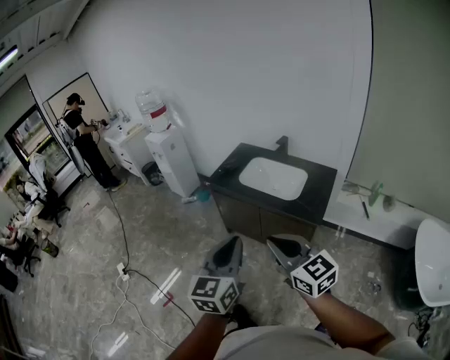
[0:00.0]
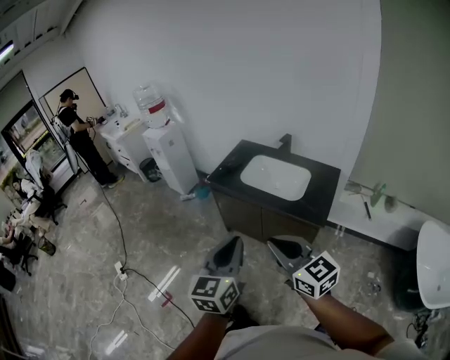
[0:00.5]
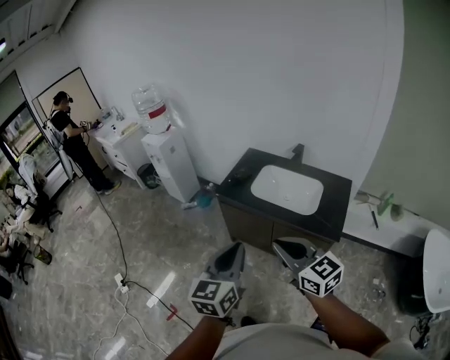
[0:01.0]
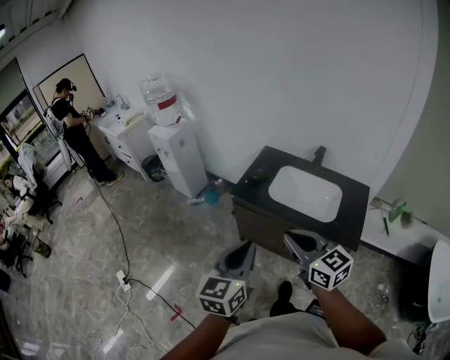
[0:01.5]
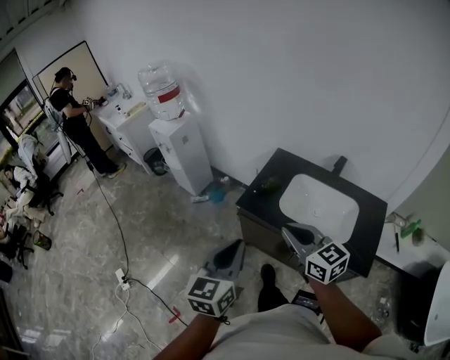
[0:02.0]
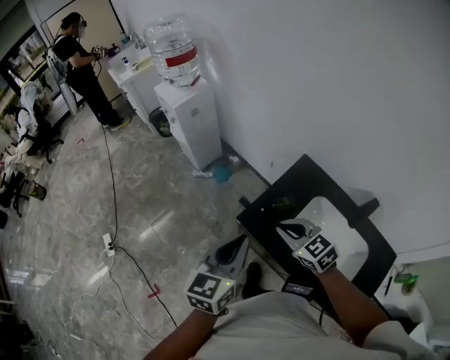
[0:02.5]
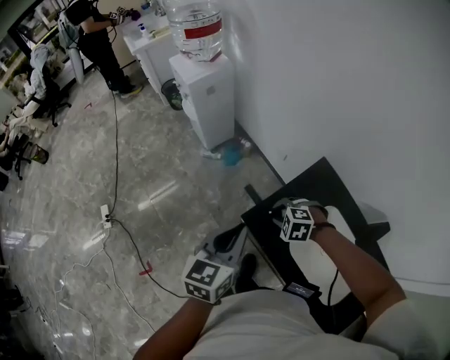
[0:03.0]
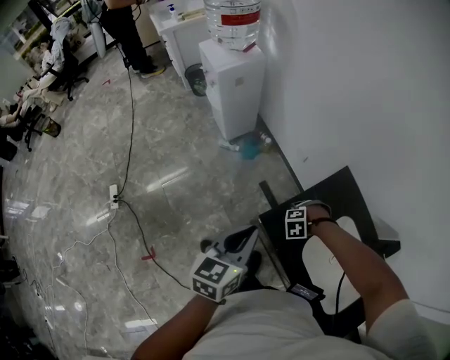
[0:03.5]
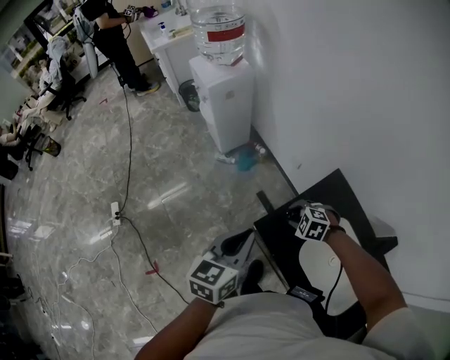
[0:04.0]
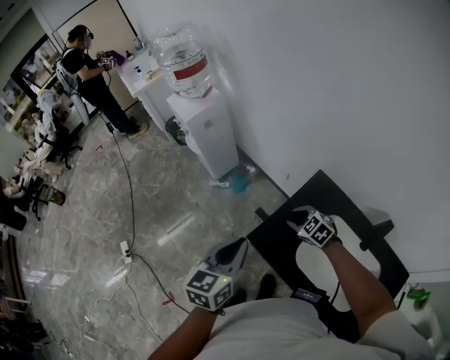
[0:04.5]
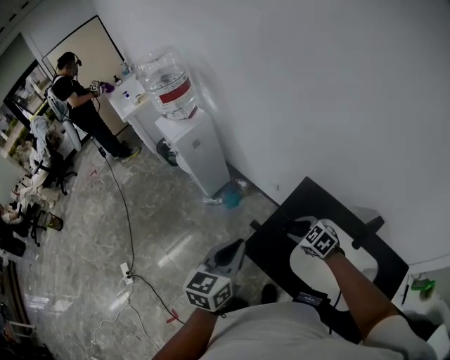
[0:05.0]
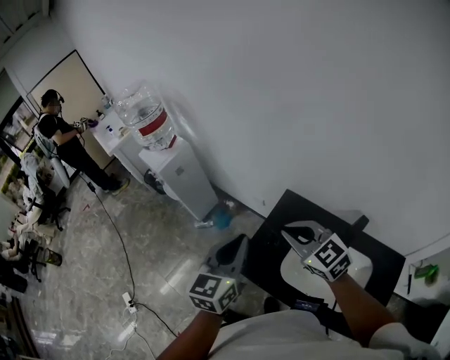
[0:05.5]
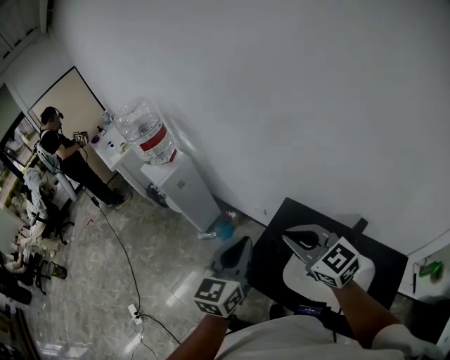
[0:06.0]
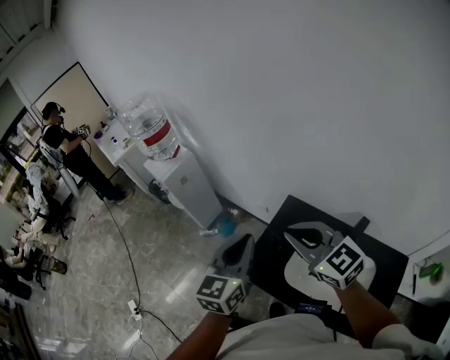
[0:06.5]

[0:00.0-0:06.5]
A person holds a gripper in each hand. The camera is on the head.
0:00.0 to 0:02.0: The two grippers travel together, forward, roughly 50 cm.
0:02.0 to 0:04.5: The left gripper moves some 35 cm, while the right gripper changes place by some 50 cm, tips its fingers downward by approximately 40 degrees, and opens its fingers.
0:04.5 to 0:06.5: The left gripper moves upward and to the right, roughly 20 cm. The right gripper travels upward by approximately 35 cm, angles its fingers upward, by roughly 40 degrees, and closes up.

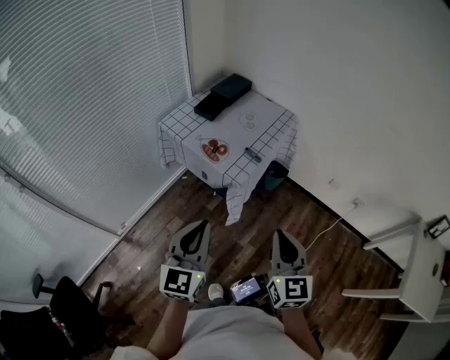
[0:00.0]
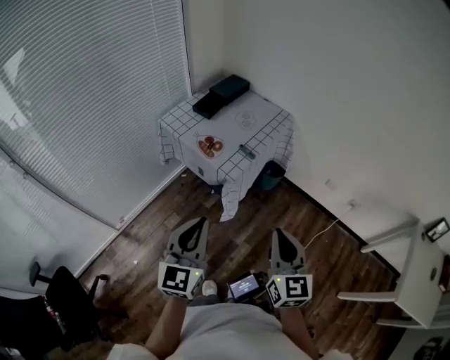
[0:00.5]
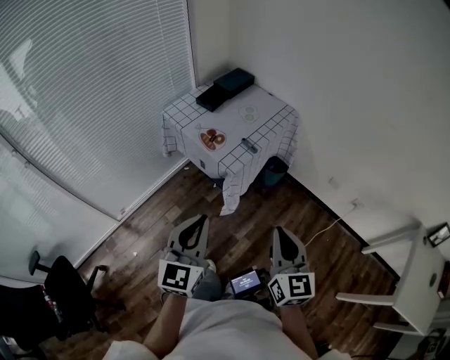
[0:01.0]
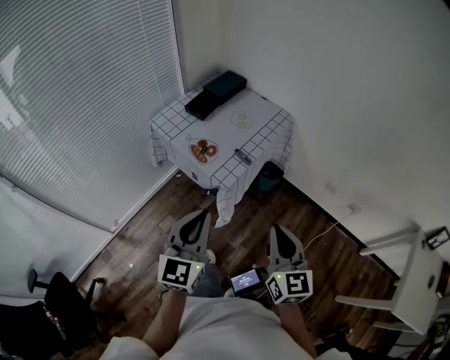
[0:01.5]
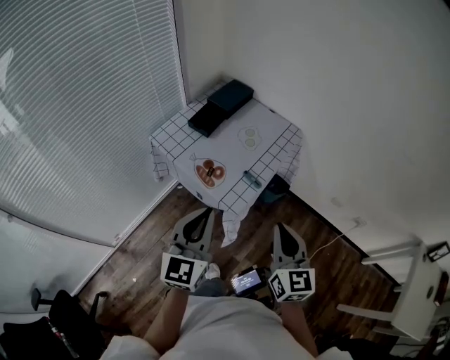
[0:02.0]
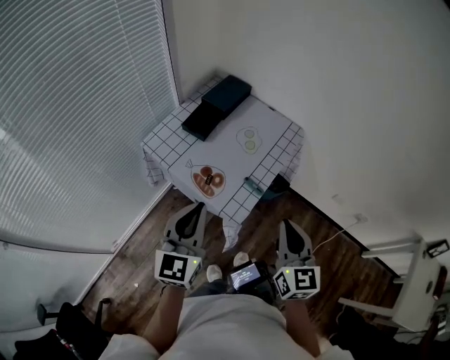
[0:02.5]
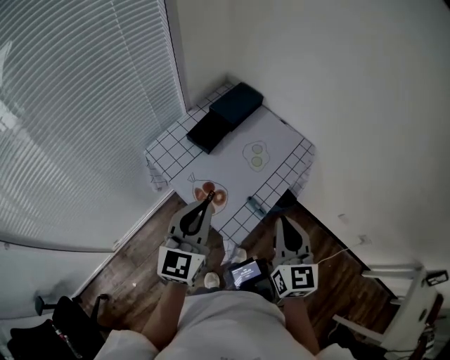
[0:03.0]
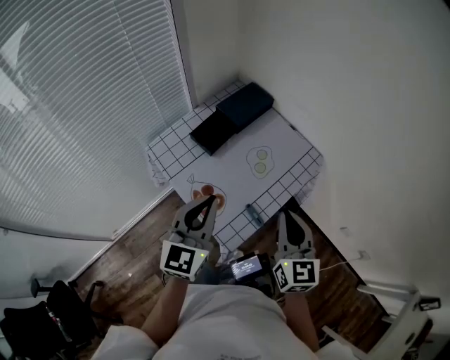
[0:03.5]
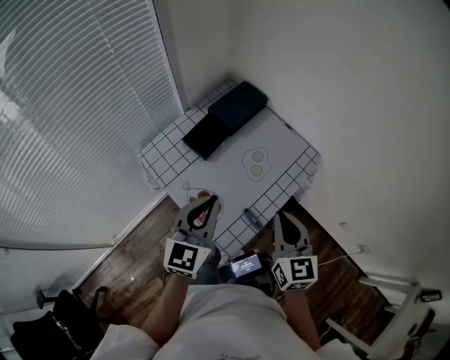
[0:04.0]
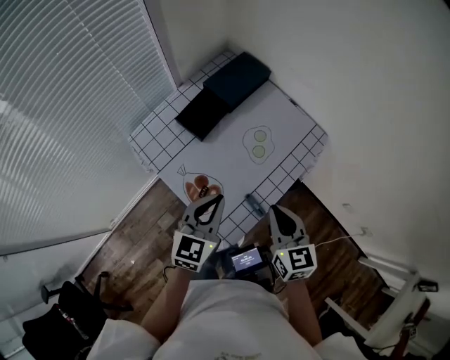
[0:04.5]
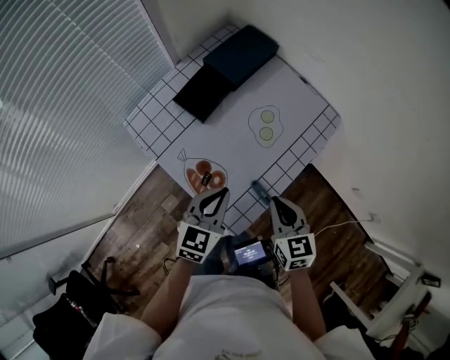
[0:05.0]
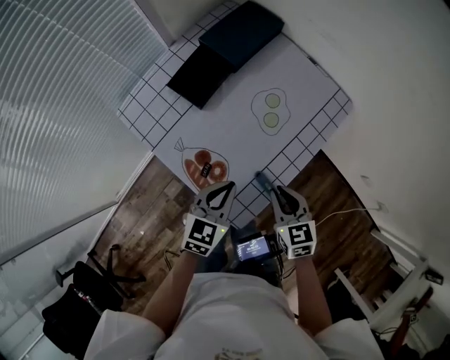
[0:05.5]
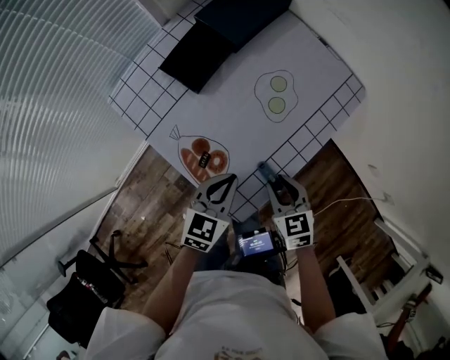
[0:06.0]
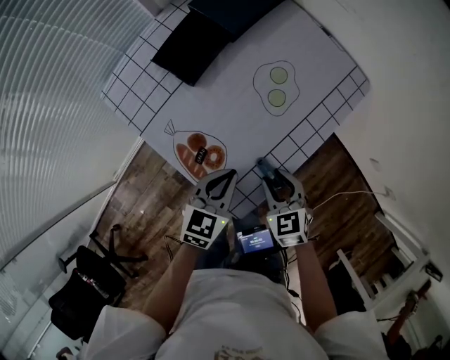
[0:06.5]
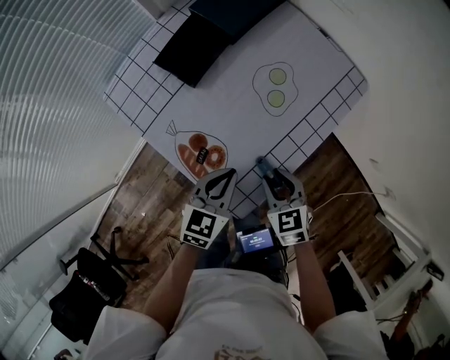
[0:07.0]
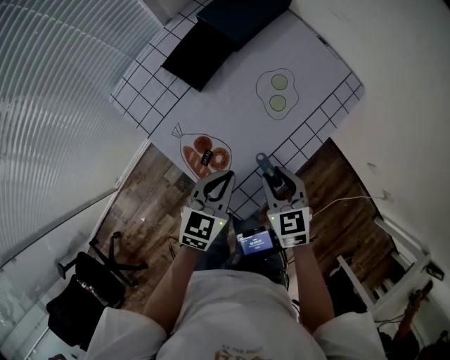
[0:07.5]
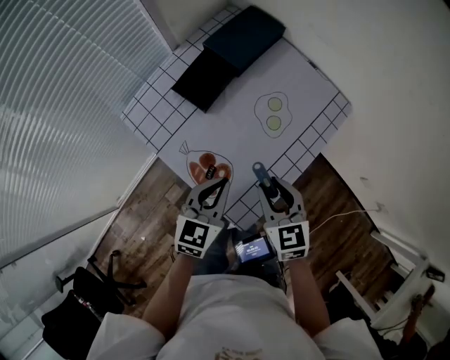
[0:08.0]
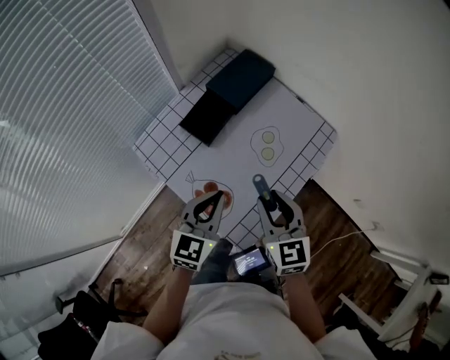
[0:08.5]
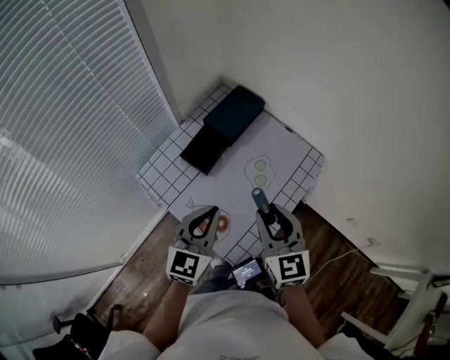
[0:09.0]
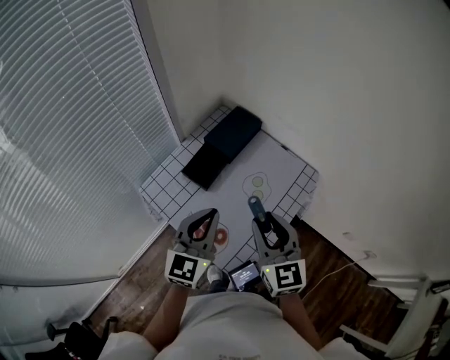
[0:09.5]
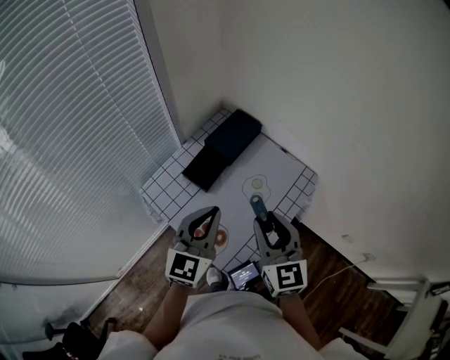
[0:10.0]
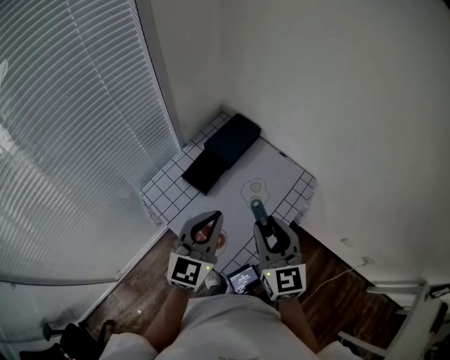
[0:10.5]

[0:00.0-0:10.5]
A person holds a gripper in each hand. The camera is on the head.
0:00.0 to 0:02.0: Both grippers travel together forward, roughly 20 cm.
0:02.0 to 0:04.0: The grippers both shift forward by roughly 25 cm.
0:04.0 to 0:06.5: Both grippers travel together downward, roughly 25 cm. The left gripper changes its angle by about 30 degrees, while the right gripper tips its fingers downward by about 30 degrees, and opens up.
0:06.5 to 0:08.5: Both grippers move upward, some 20 cm. The right gripper turns by some 30 degrees.
0:08.5 to 0:10.5: The grippers both shift upward by some 15 cm.

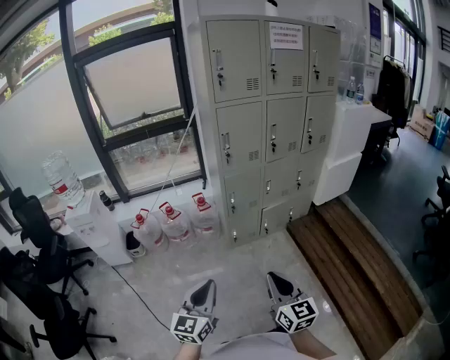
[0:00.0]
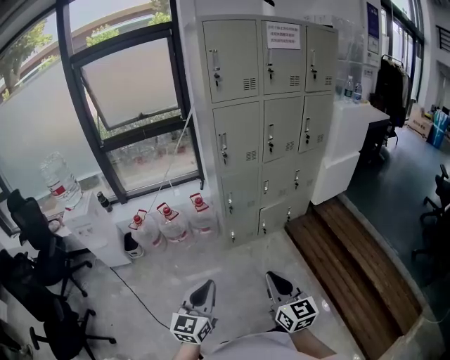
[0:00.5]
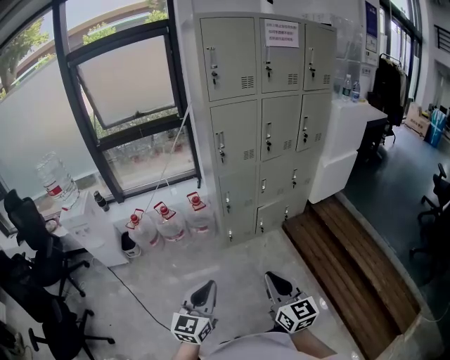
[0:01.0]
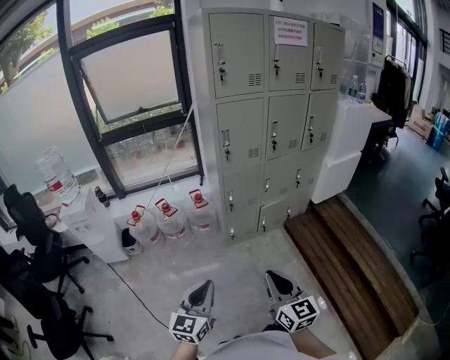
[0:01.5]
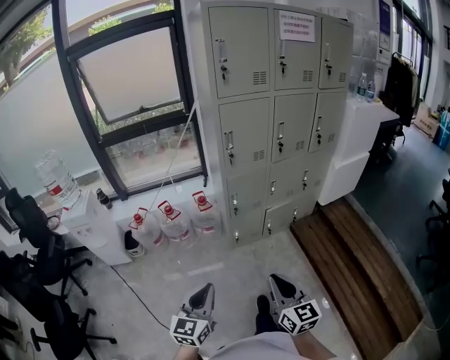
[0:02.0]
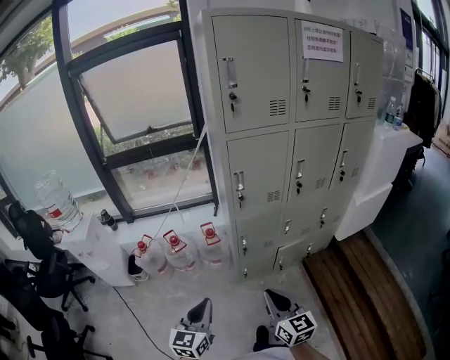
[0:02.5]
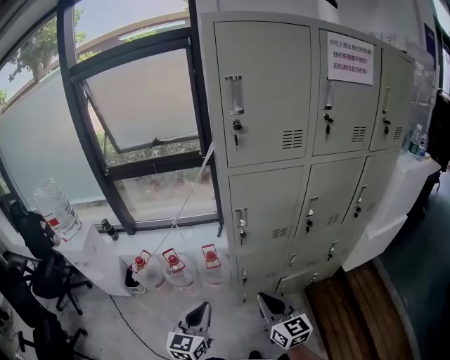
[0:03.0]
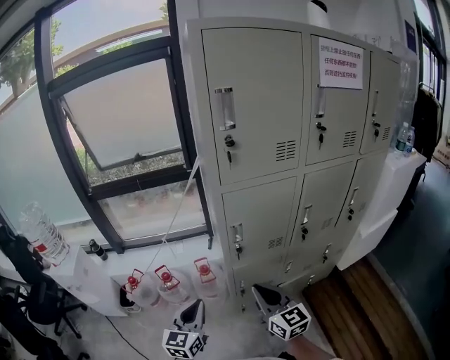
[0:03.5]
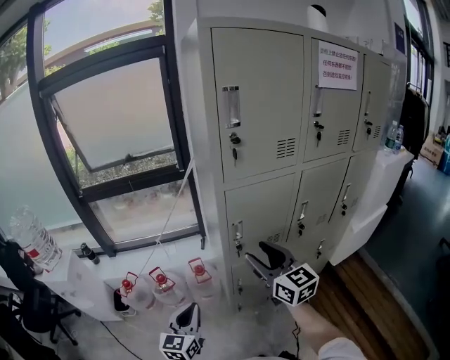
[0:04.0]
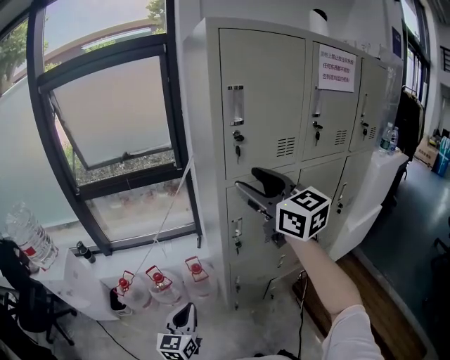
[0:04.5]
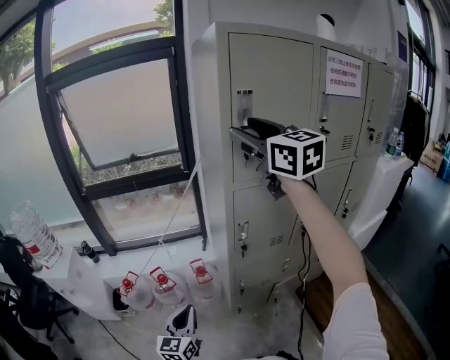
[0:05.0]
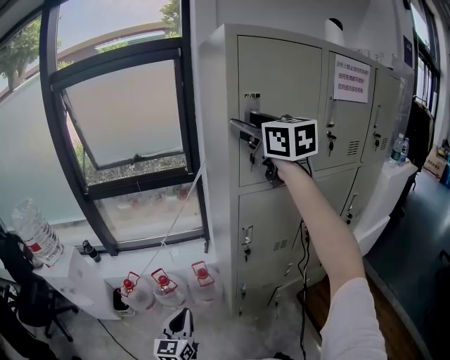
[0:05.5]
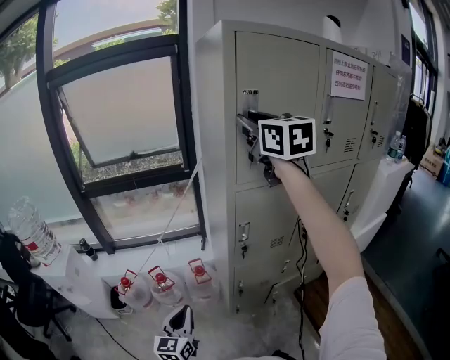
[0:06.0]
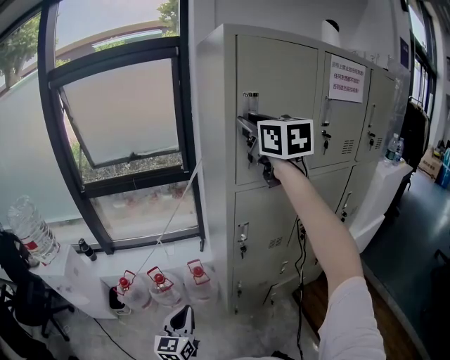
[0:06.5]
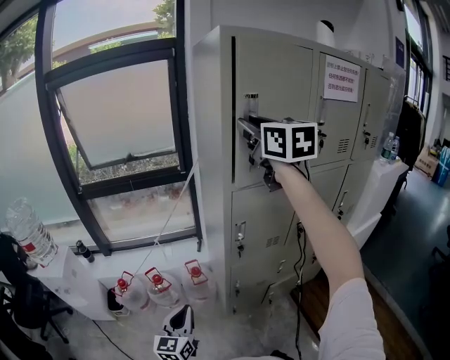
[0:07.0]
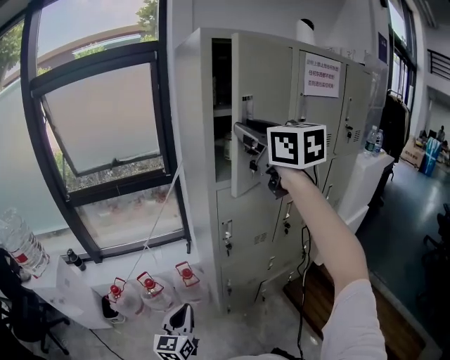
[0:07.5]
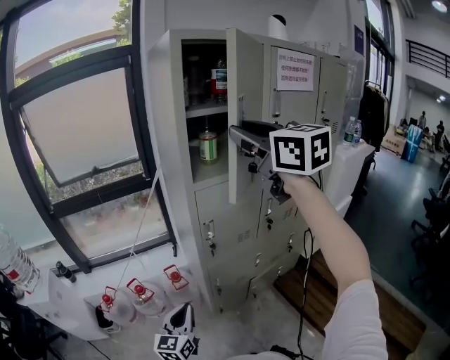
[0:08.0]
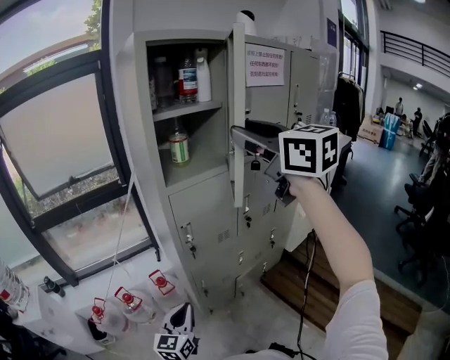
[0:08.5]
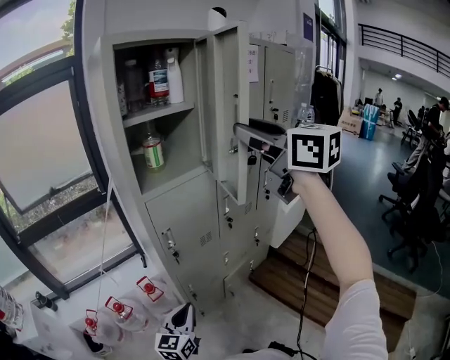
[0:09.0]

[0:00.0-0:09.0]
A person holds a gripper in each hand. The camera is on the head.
0:00.0 to 0:02.0: Both grippers move forward, roughly 5 cm.
0:02.0 to 0:04.5: Both grippers are carried forward, approximately 50 cm. The right gripper travels upward by roughly 35 cm, turns by approximately 30 degrees, and opens its fingers.
0:04.5 to 0:07.0: The right gripper travels upward and forward by roughly 15 cm, and closes up.
0:07.0 to 0:09.0: The right gripper goes about 25 cm to the right and backward, while the left gripper goes approximately 15 cm to the right, and rotates some 30 degrees.

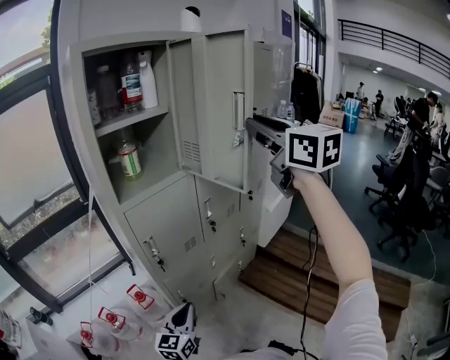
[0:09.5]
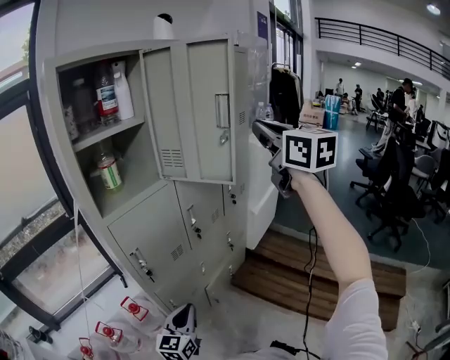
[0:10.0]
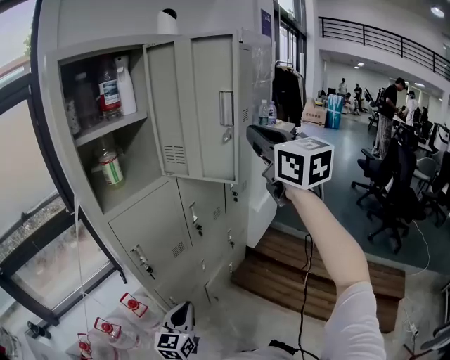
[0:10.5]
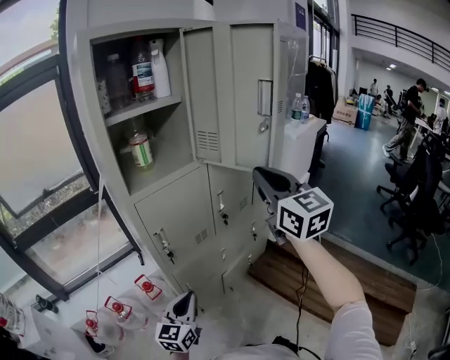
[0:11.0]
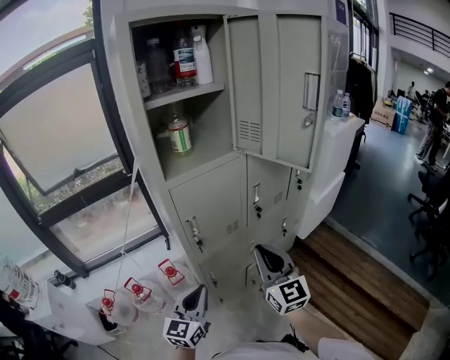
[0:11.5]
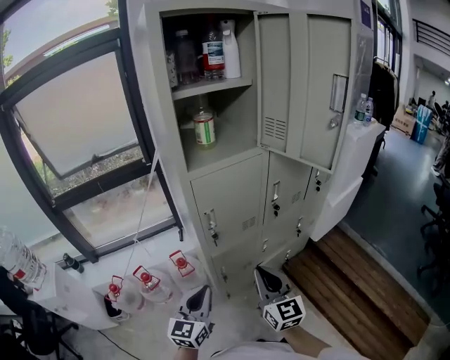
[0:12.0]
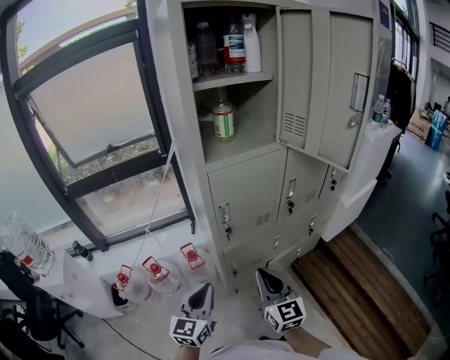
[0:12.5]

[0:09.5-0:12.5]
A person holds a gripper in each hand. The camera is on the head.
0:09.5 to 0:11.0: The right gripper travels downward by about 15 cm.
0:11.0 to 0:12.5: The right gripper shifts about 35 cm downward and to the left. The left gripper travels to the left by about 10 cm.
